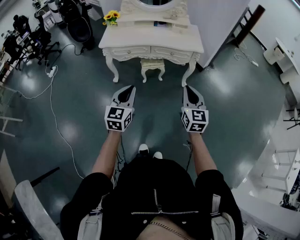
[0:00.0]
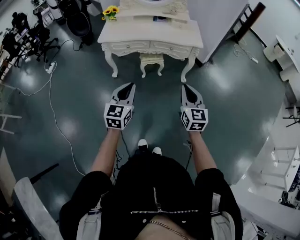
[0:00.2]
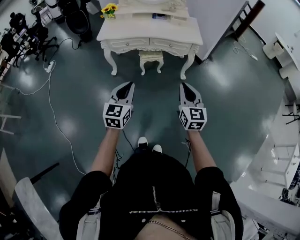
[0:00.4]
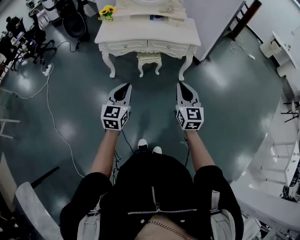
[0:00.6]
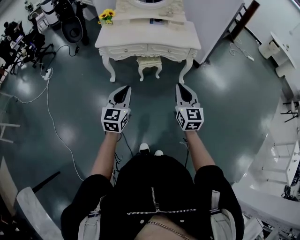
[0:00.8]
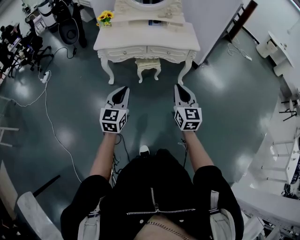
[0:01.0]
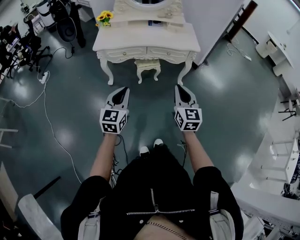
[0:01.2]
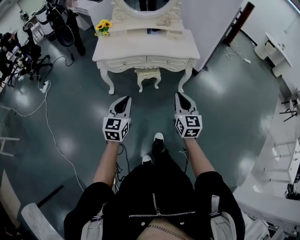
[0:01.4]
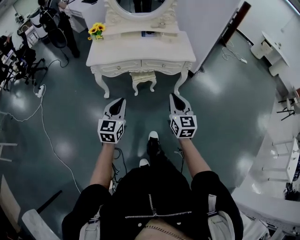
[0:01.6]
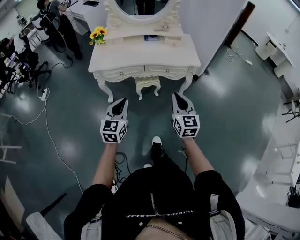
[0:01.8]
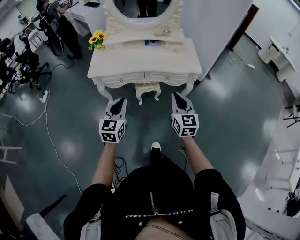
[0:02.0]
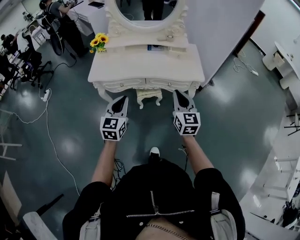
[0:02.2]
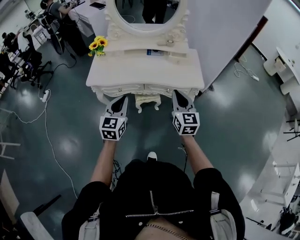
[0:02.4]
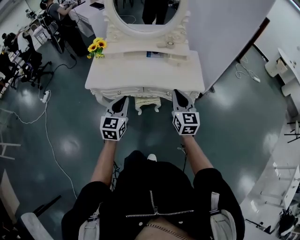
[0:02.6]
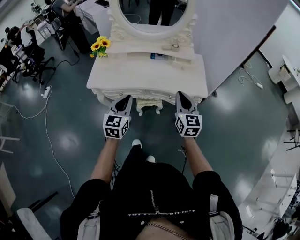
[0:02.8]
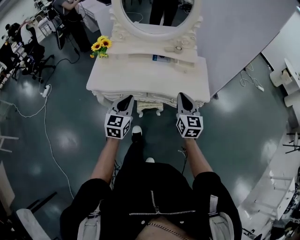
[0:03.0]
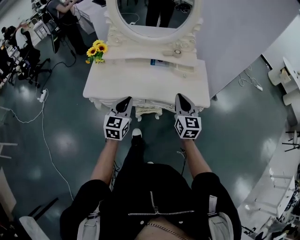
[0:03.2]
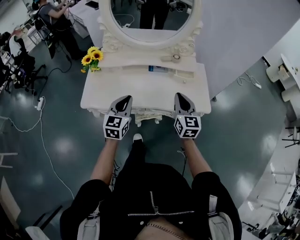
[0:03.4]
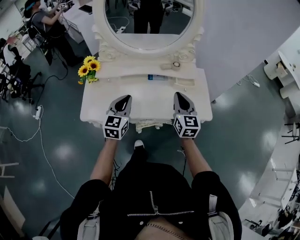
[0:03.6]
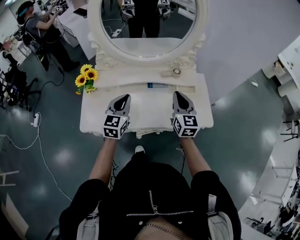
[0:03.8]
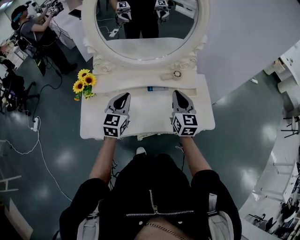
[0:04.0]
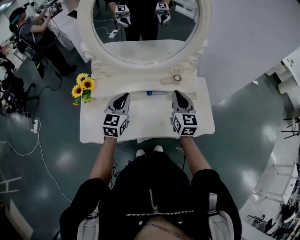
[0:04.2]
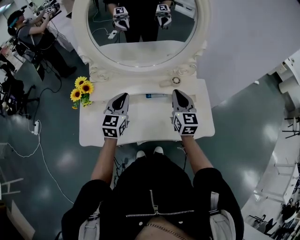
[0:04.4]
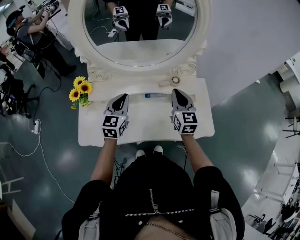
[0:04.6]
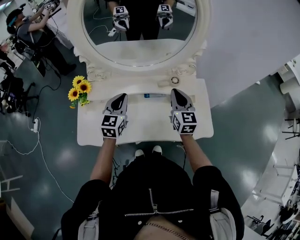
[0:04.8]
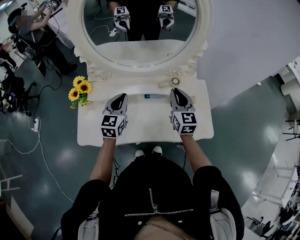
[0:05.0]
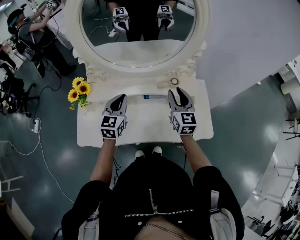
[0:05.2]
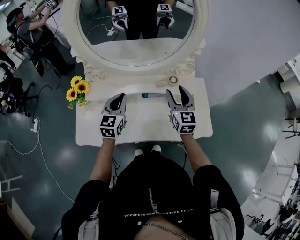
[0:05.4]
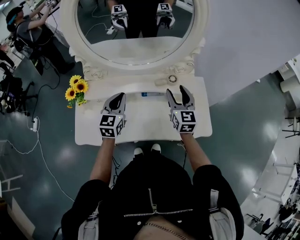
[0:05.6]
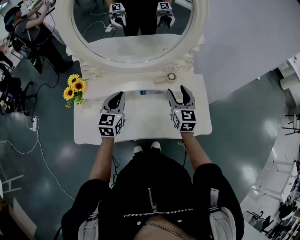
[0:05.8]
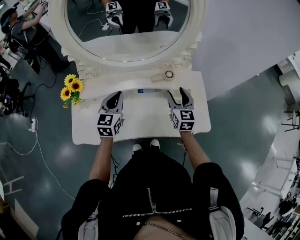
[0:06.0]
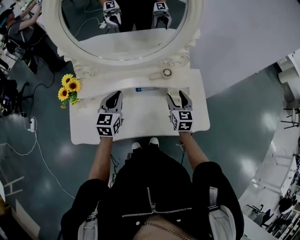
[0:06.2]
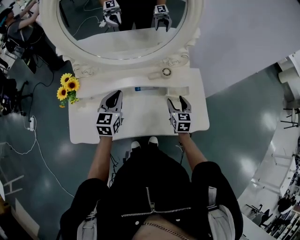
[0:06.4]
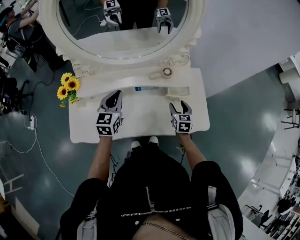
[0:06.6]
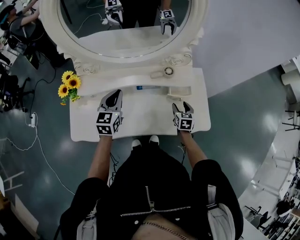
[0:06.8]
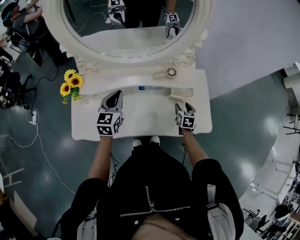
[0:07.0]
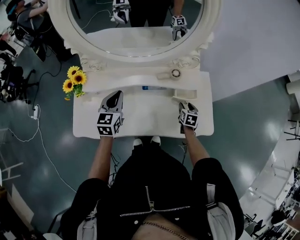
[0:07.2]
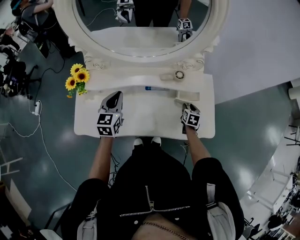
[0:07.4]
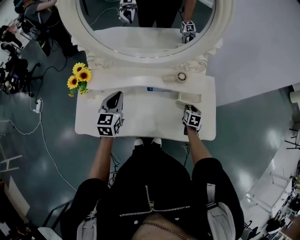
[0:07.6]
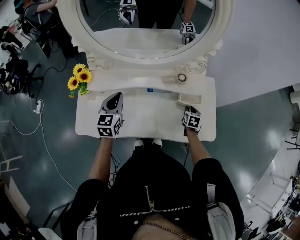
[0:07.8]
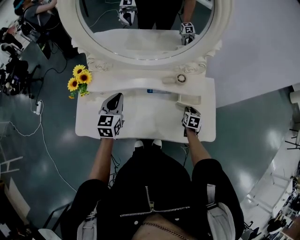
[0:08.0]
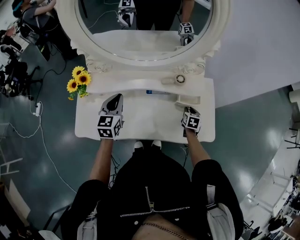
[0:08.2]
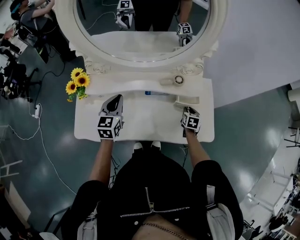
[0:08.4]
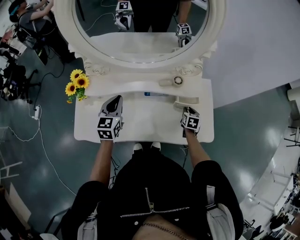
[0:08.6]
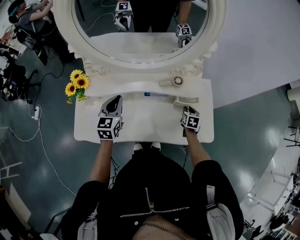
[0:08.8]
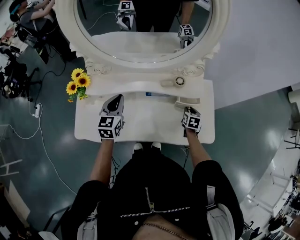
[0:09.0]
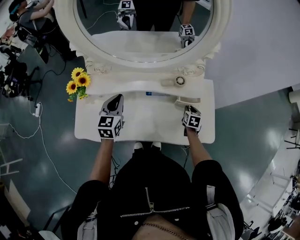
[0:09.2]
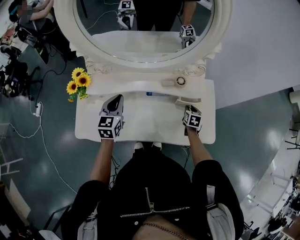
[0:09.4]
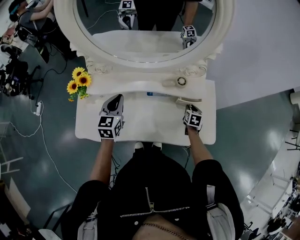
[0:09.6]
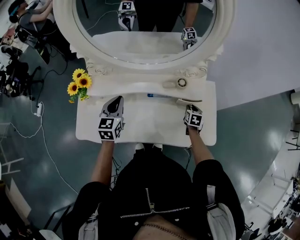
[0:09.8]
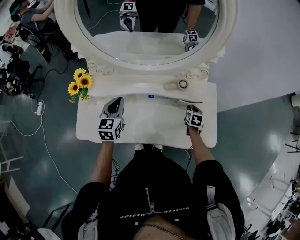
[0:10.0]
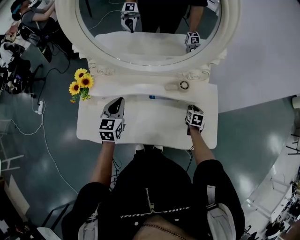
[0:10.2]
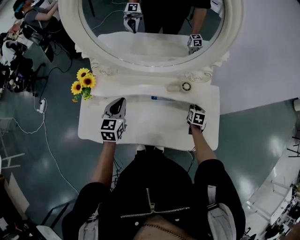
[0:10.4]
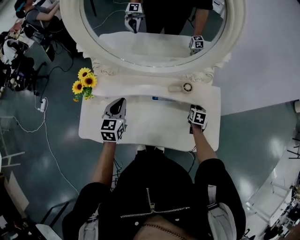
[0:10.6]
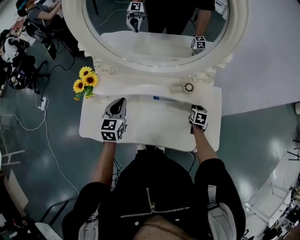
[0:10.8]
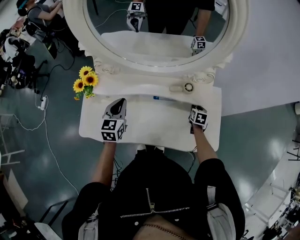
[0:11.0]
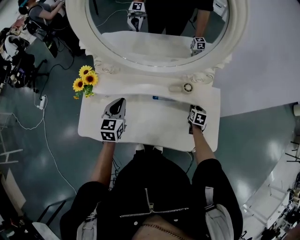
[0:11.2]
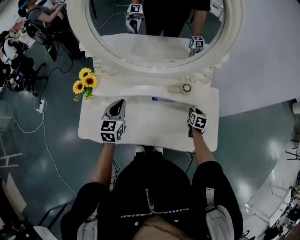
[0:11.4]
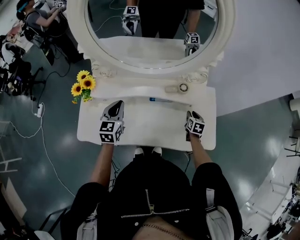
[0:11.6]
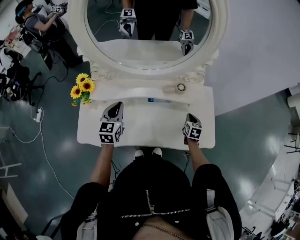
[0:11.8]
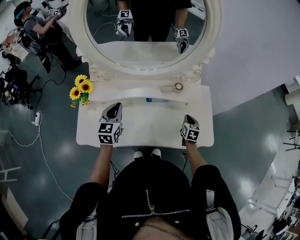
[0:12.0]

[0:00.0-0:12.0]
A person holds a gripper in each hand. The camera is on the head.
0:00.0 to 0:01.6: The two grippers go some 10 cm forward and to the left.
0:01.6 to 0:03.0: The grippers both shift forward by some 35 cm.
0:03.0 to 0:04.4: Both grippers travel together forward, approximately 35 cm.
0:04.4 to 0:06.0: The right gripper moves downward and to the right, about 10 cm, and opens.
0:06.0 to 0:07.6: The right gripper moves downward and to the right, about 25 cm, tips its fingers downward by approximately 30 degrees, and closes up.
0:07.6 to 0:09.0: The grippers move only a little.
0:09.0 to 0:10.4: The right gripper shifts some 5 cm forward.
0:10.4 to 0:12.0: The right gripper is displaced backward by some 10 cm, and closes up.

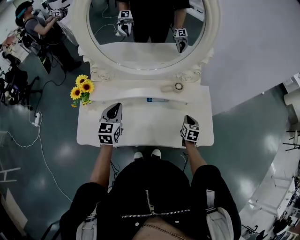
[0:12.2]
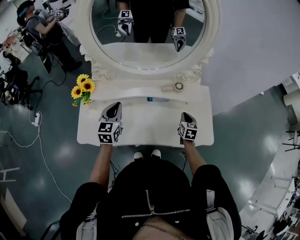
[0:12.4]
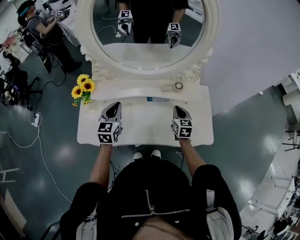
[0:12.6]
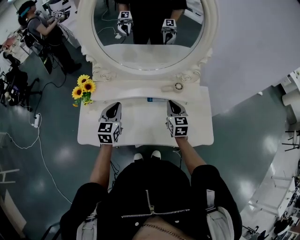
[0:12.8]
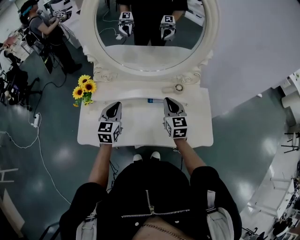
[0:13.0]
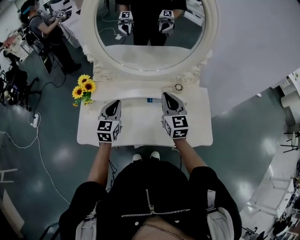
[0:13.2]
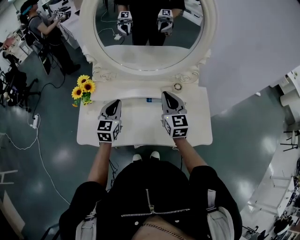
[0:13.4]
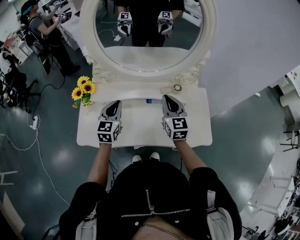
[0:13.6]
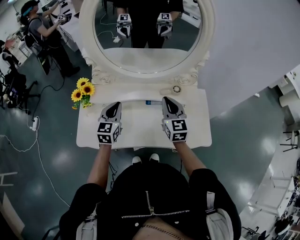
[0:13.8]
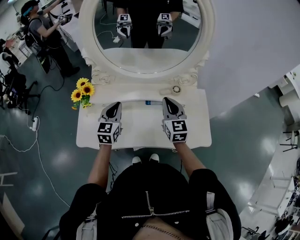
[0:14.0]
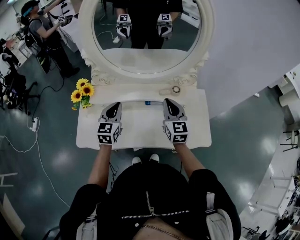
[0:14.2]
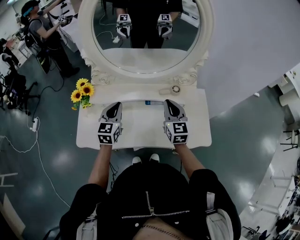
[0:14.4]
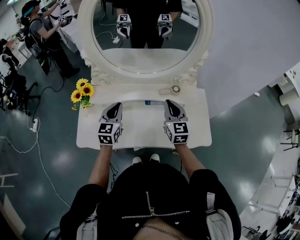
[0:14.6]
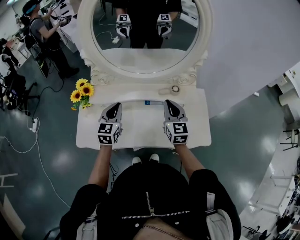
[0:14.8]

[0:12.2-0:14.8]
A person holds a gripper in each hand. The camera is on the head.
0:12.2 to 0:13.4: The right gripper travels upward and to the left by approximately 30 cm, and tilts its fingers roughly 30 degrees upward.
0:13.4 to 0:14.8: The grippers stay close to where they were, moving slightly.

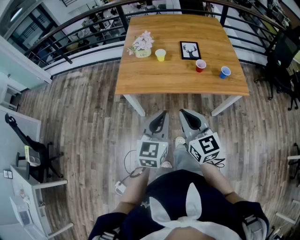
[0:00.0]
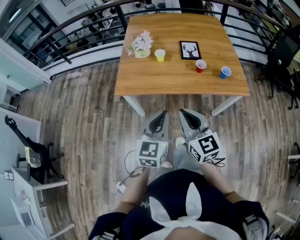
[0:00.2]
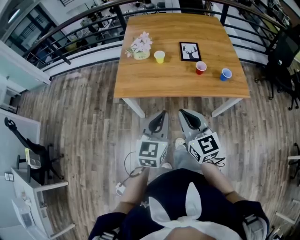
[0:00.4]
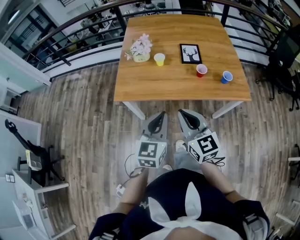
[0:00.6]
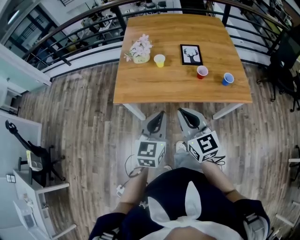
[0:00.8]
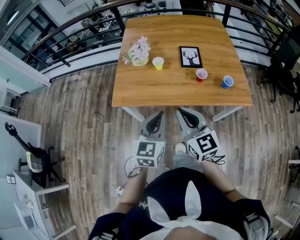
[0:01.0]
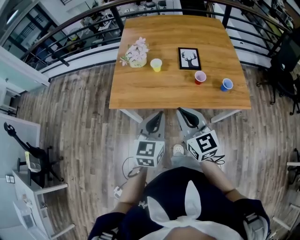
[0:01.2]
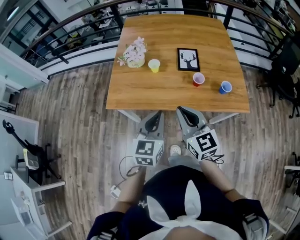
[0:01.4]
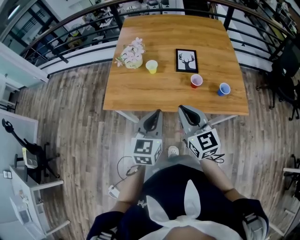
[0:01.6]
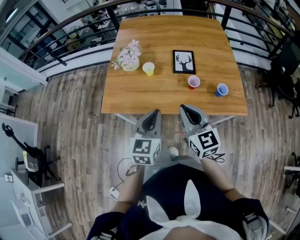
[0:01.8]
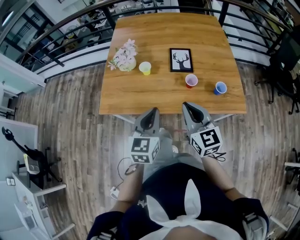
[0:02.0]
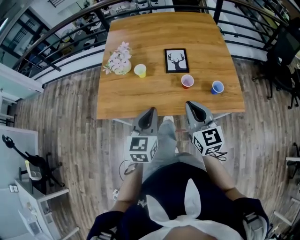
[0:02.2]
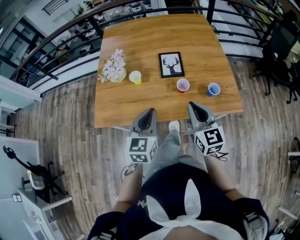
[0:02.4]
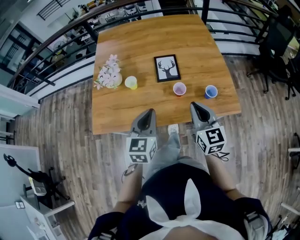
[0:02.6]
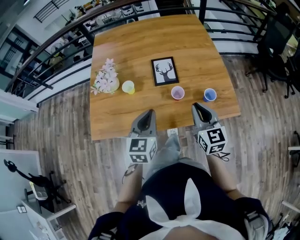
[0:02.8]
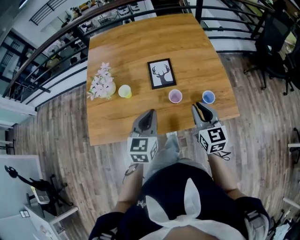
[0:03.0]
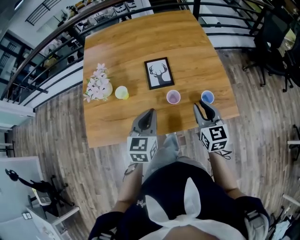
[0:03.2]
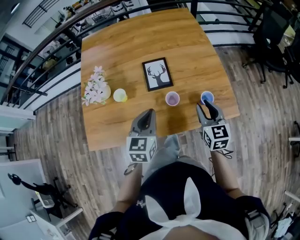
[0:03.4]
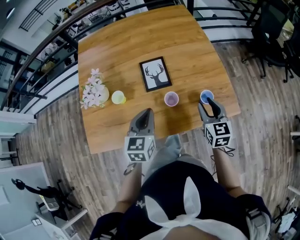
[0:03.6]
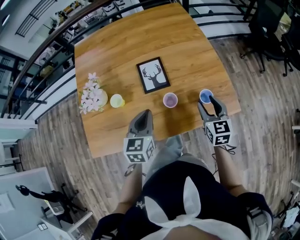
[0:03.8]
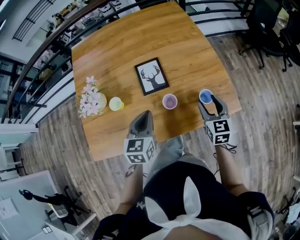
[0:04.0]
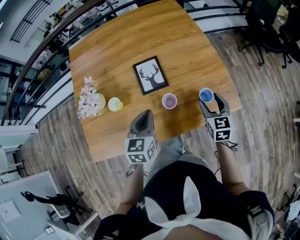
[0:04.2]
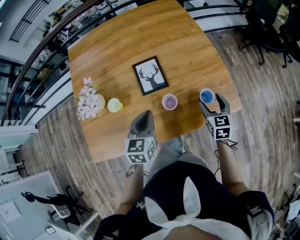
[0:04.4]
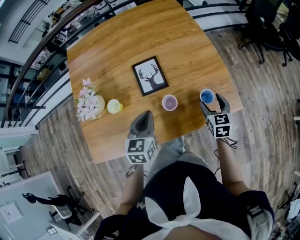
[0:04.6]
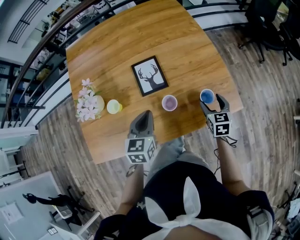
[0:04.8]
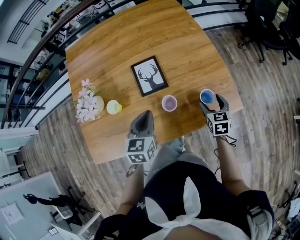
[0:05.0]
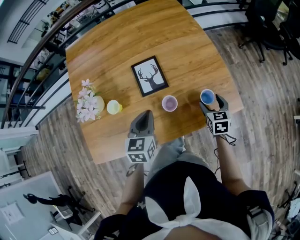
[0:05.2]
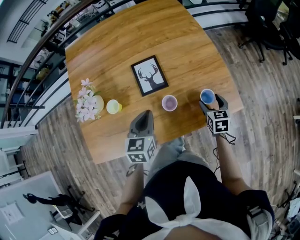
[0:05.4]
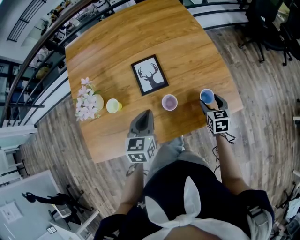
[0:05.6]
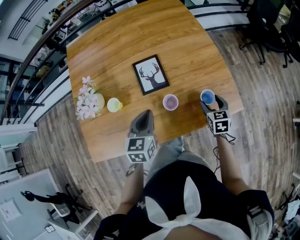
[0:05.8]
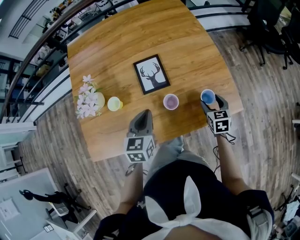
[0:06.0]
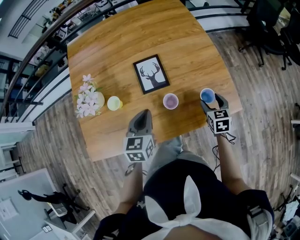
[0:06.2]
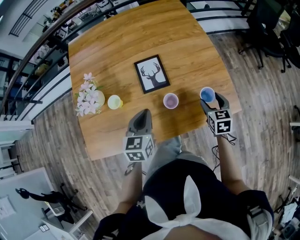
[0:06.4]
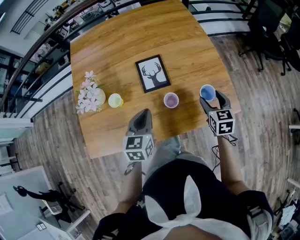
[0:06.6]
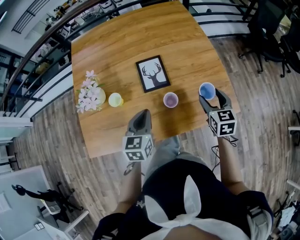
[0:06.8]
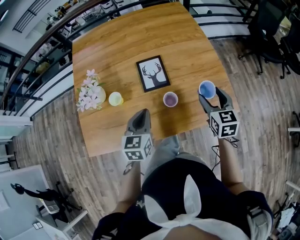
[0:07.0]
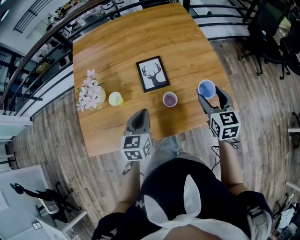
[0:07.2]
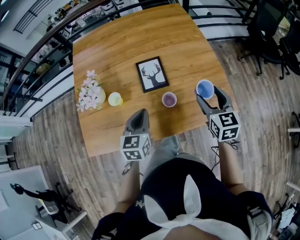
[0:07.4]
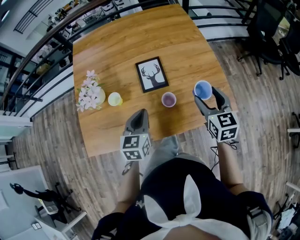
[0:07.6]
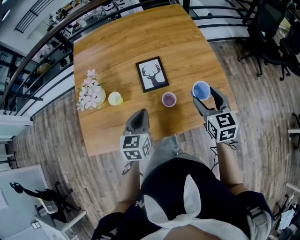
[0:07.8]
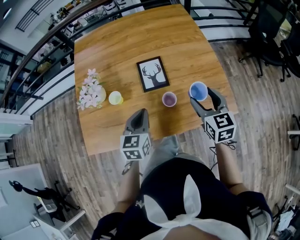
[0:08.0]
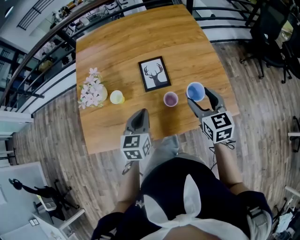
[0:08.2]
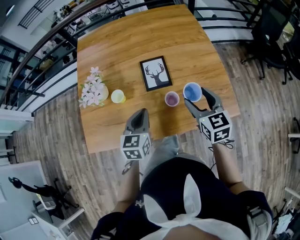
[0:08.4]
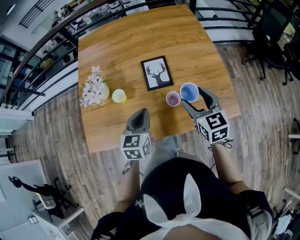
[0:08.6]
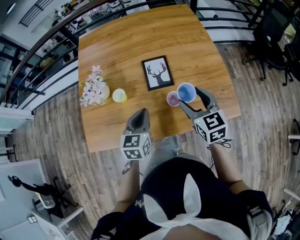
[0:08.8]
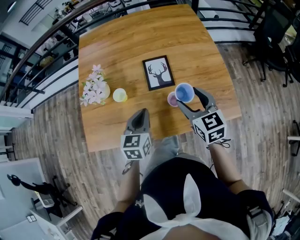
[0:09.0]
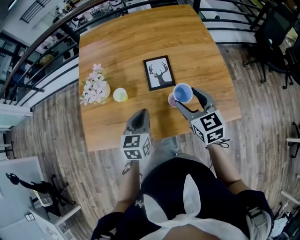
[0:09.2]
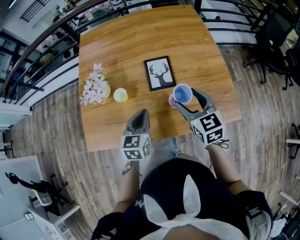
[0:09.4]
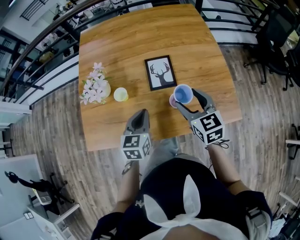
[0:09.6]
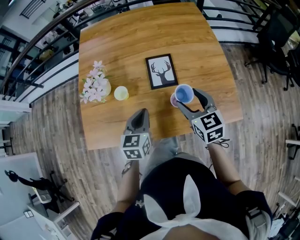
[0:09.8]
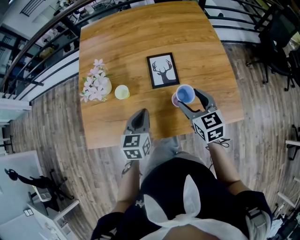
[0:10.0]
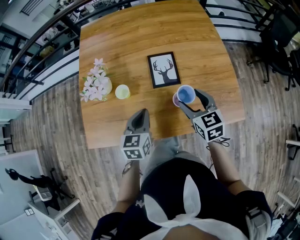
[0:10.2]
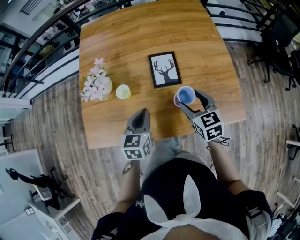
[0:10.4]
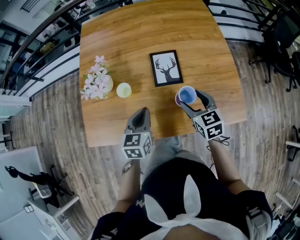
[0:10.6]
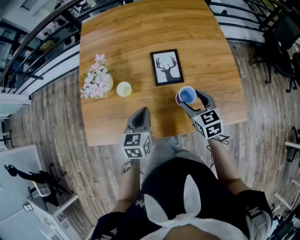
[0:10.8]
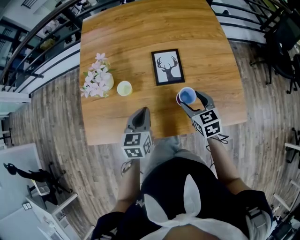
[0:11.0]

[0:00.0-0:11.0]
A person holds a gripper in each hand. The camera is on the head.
0:00.0 to 0:01.6: The grippers both shift forward and to the right by approximately 20 cm.
0:01.6 to 0:03.2: The right gripper heads to the right and forward, covering roughly 25 cm, and turns by some 30 degrees. Meanwhile the left gripper heads forward and to the right, covering some 20 cm.
0:03.2 to 0:04.8: The right gripper goes some 20 cm downward, to the right and forward, swivels approximately 30 degrees, and opens up. The left gripper shifts approximately 10 cm forward and downward.
0:04.8 to 0:06.2: There are only small adjustments of the grippers.
0:06.2 to 0:07.8: The right gripper travels upward by some 15 cm.
0:07.8 to 0:09.4: The right gripper goes roughly 10 cm to the left.
0:09.4 to 0:11.0: The right gripper shifts approximately 10 cm downward.
